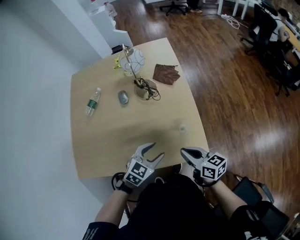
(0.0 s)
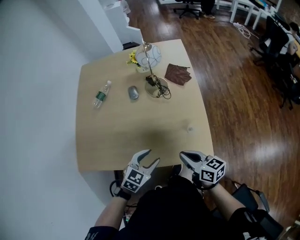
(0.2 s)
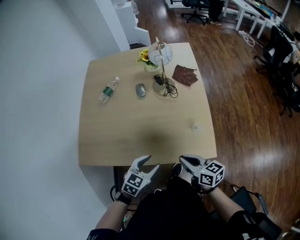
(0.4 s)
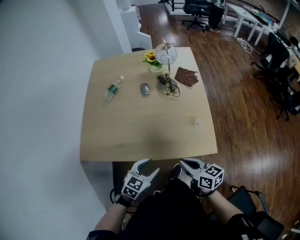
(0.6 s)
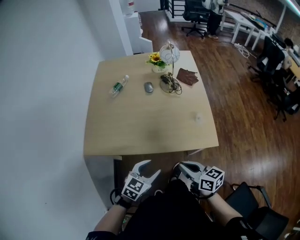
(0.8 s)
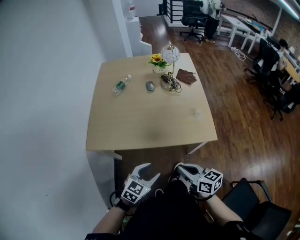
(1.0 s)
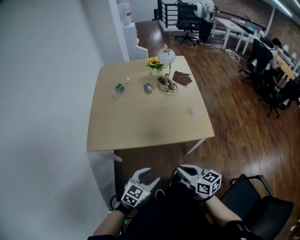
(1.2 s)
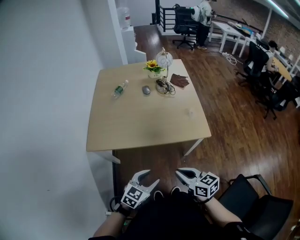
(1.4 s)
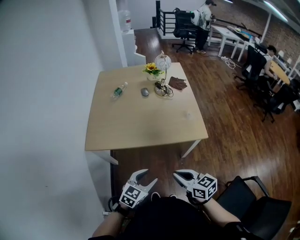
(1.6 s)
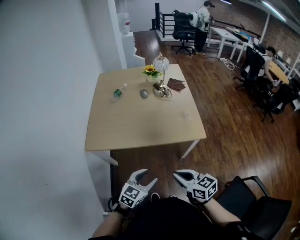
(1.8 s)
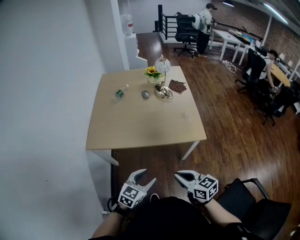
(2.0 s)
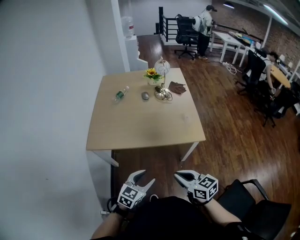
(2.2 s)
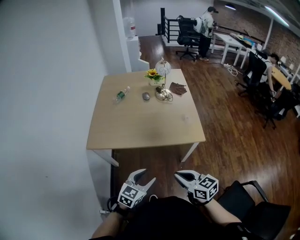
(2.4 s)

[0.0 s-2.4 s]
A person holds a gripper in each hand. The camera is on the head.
0.0 to 1.2 s: Both grippers travel together backward and to the left, roughly 35 cm.
1.2 to 2.4 s: Both grippers move backward, approximately 5 cm.

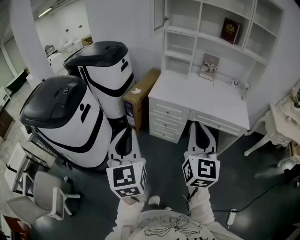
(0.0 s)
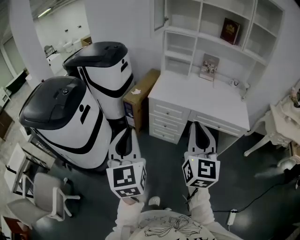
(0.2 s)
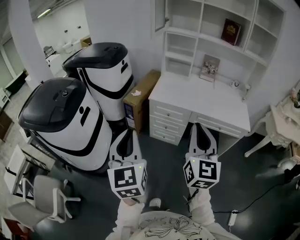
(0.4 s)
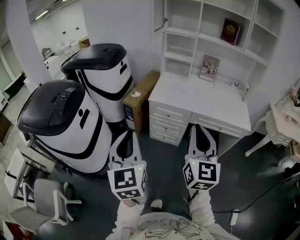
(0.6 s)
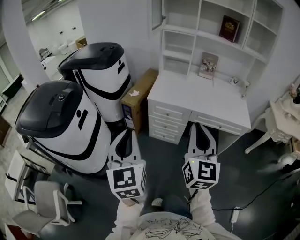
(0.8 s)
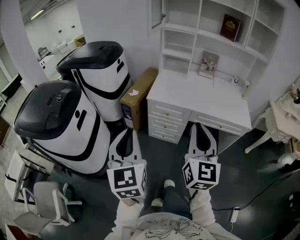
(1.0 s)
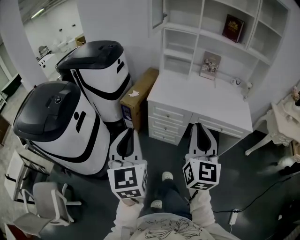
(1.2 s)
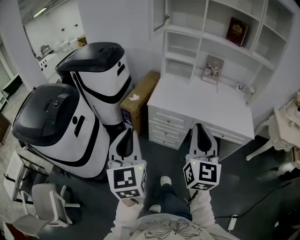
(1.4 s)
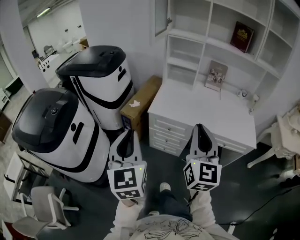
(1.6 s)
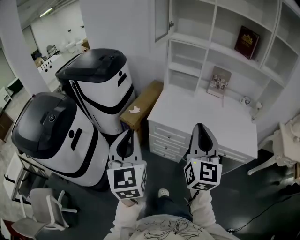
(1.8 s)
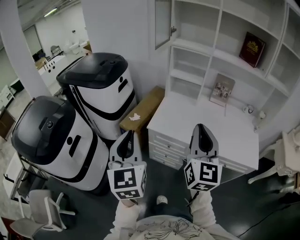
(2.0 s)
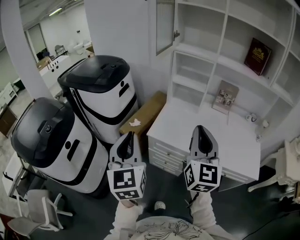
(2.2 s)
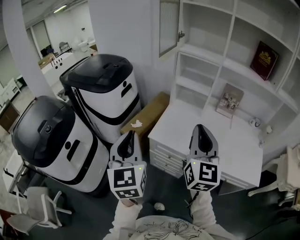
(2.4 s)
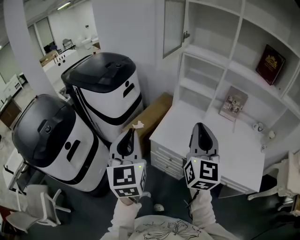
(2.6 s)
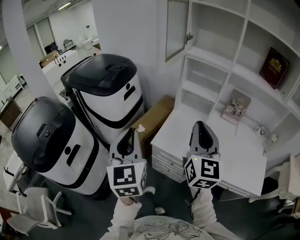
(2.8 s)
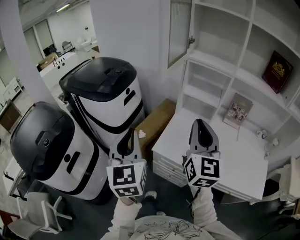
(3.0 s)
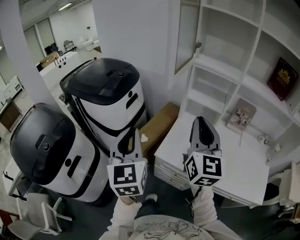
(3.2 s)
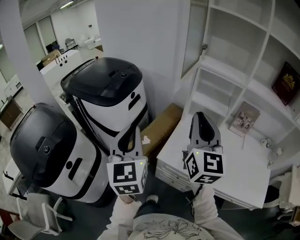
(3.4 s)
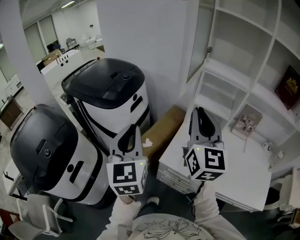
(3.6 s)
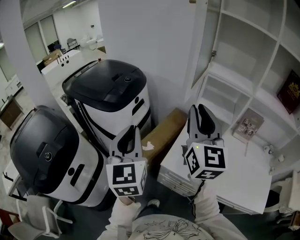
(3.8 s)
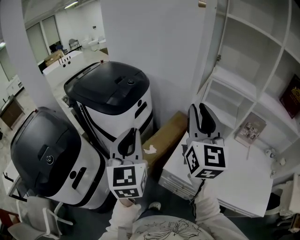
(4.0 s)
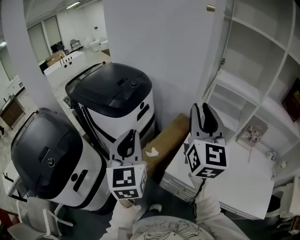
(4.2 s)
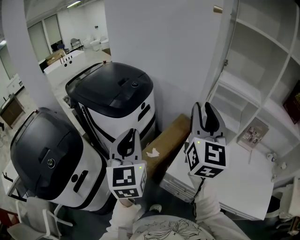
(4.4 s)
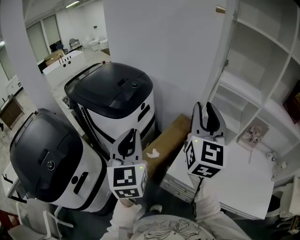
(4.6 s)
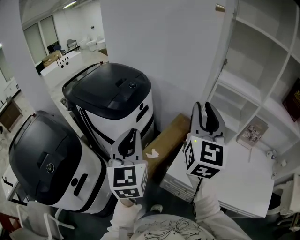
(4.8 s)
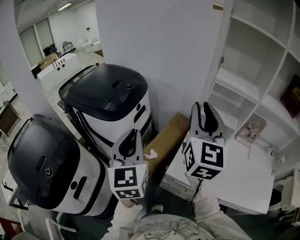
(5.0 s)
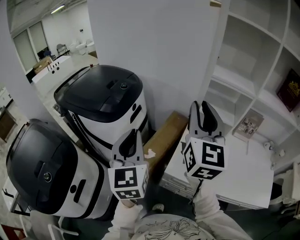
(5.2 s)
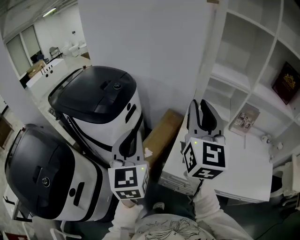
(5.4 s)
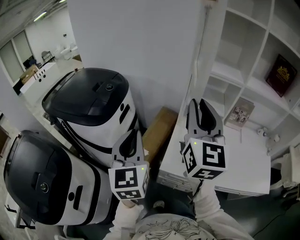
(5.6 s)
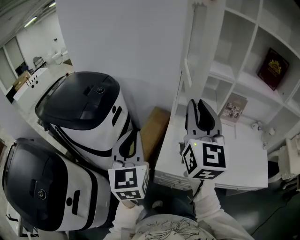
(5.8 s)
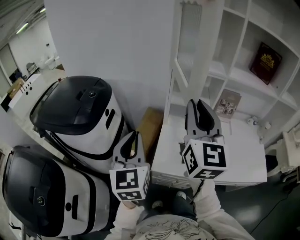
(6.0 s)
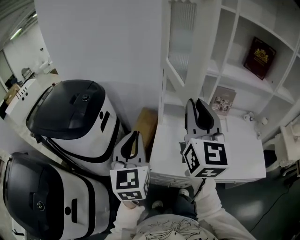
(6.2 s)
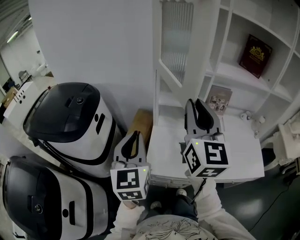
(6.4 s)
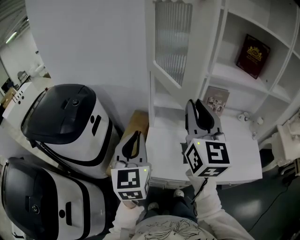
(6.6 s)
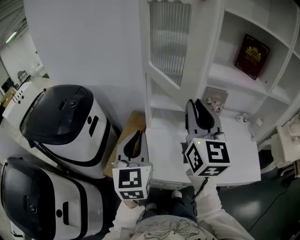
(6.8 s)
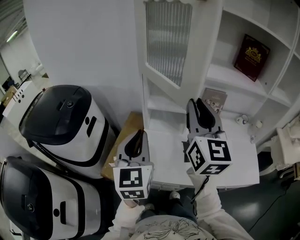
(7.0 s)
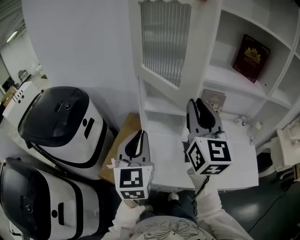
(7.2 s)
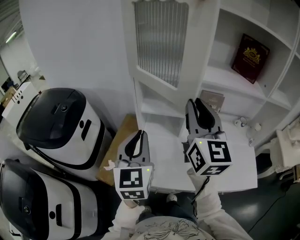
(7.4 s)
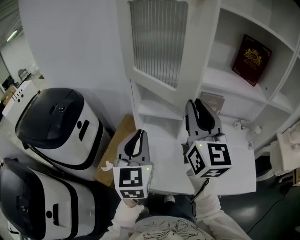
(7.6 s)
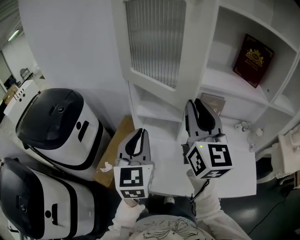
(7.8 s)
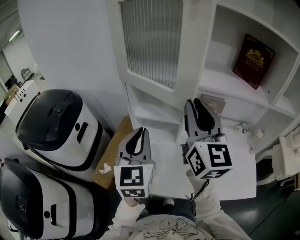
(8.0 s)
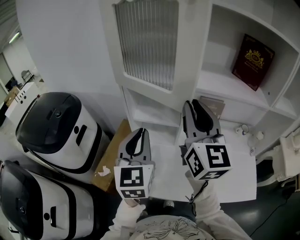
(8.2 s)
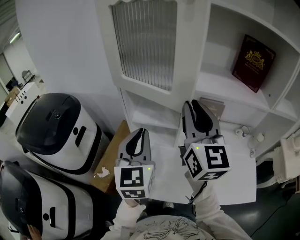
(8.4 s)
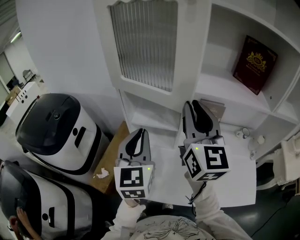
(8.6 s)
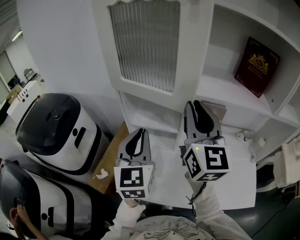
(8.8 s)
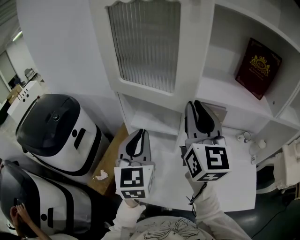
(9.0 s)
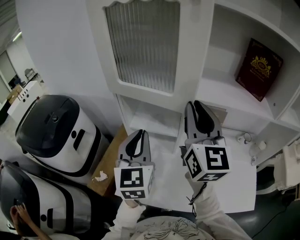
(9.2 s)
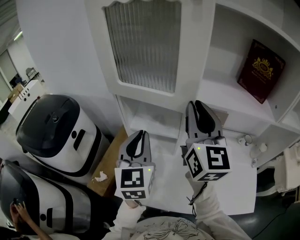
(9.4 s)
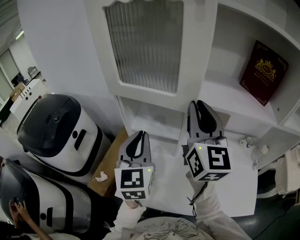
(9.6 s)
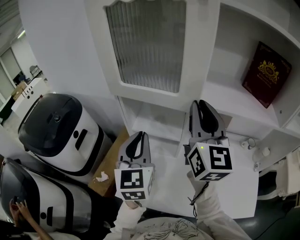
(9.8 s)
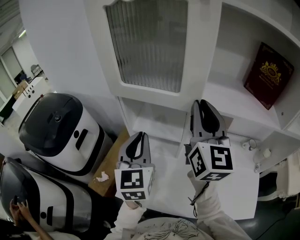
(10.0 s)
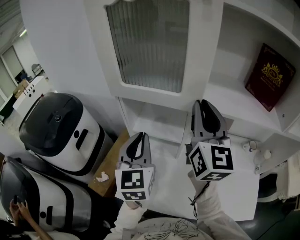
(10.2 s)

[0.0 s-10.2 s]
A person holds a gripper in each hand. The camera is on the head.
0.0 to 1.4 s: The grippers both shift forward by about 15 cm.
1.4 to 3.0 s: The grippers both shift forward by about 35 cm.
3.0 to 4.4 s: The left gripper heads forward and to the left, covering roughly 15 cm; the right gripper goes some 20 cm forward, to the left and upward, and opens its fingers.
4.4 to 5.8 s: Both grippers move to the right, about 10 cm.
5.8 to 7.2 s: The two grippers go about 20 cm to the right.
7.2 to 8.8 s: The two grippers go some 15 cm forward and to the right.
8.8 to 10.2 s: The left gripper changes place by approximately 5 cm. Meanwhile the right gripper goes some 5 cm forward.

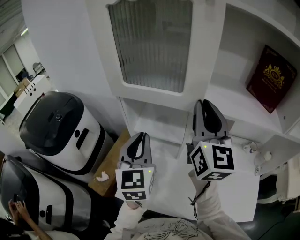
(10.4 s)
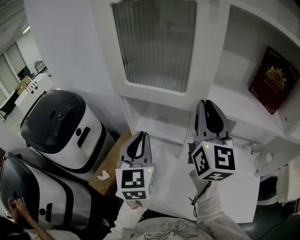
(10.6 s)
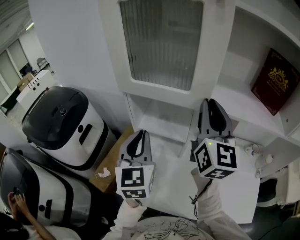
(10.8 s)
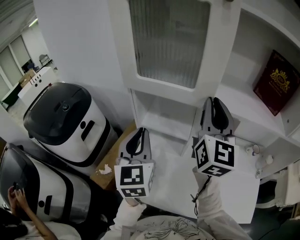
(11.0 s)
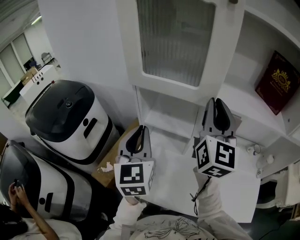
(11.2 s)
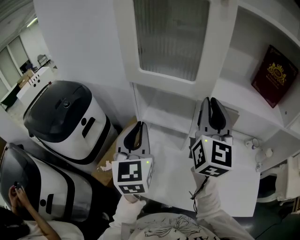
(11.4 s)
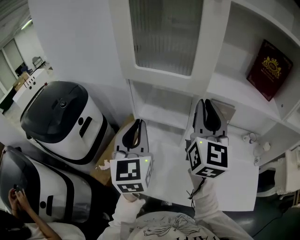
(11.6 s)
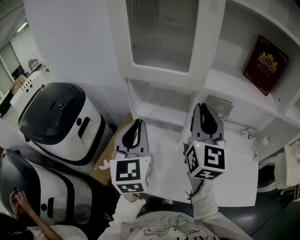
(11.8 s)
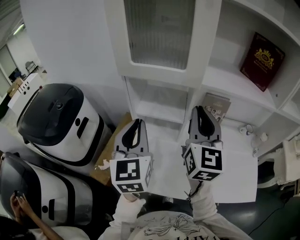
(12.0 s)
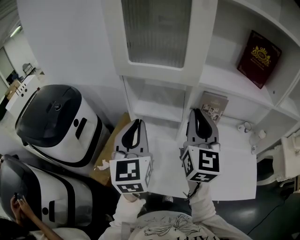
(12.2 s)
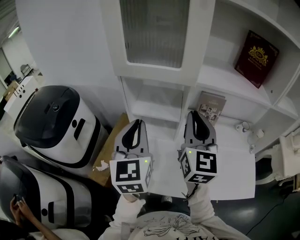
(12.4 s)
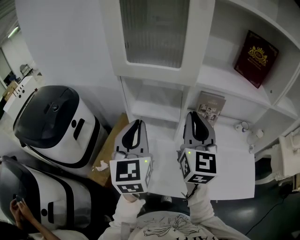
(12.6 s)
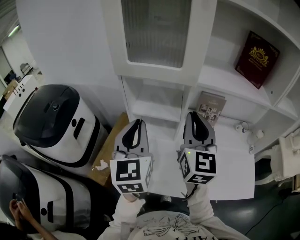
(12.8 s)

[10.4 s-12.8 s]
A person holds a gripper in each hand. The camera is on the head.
10.4 to 11.6 s: The left gripper changes place by roughly 5 cm. The right gripper is displaced backward by roughly 5 cm.
11.6 to 12.8 s: The right gripper moves approximately 5 cm.

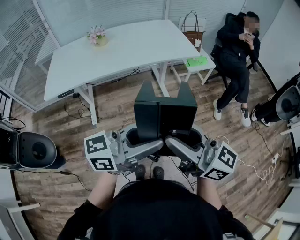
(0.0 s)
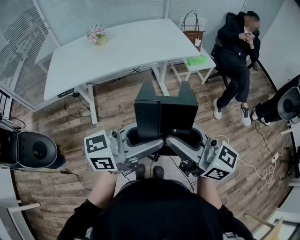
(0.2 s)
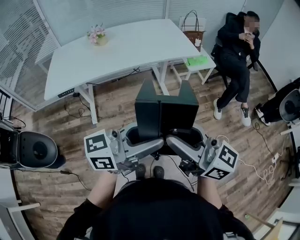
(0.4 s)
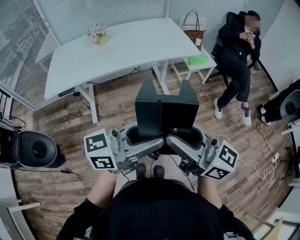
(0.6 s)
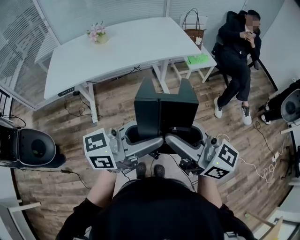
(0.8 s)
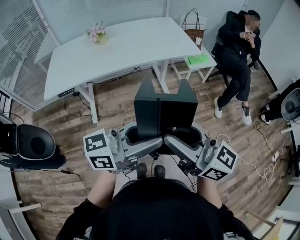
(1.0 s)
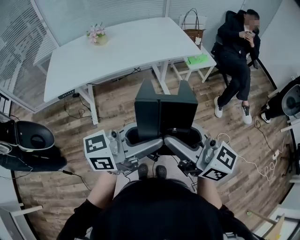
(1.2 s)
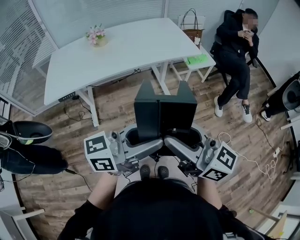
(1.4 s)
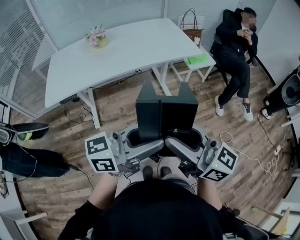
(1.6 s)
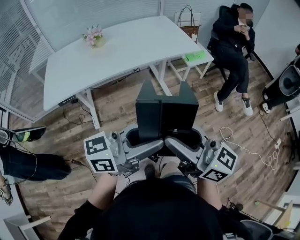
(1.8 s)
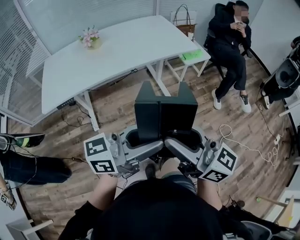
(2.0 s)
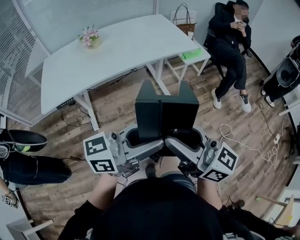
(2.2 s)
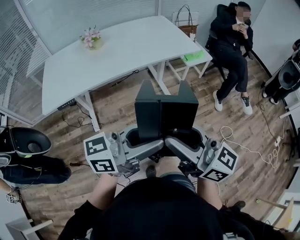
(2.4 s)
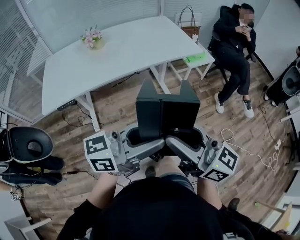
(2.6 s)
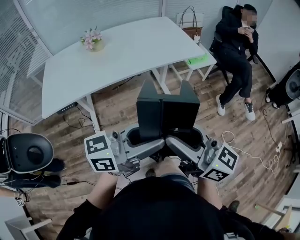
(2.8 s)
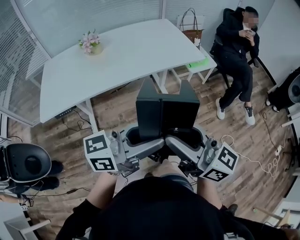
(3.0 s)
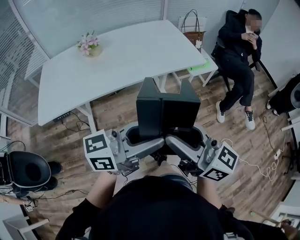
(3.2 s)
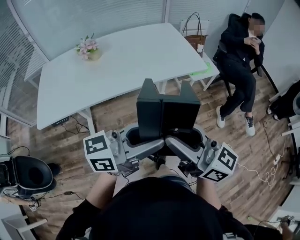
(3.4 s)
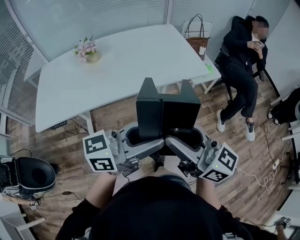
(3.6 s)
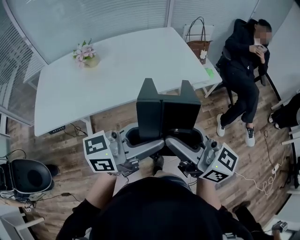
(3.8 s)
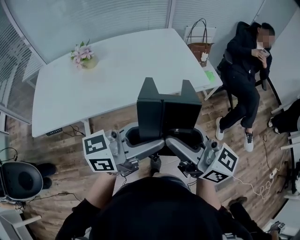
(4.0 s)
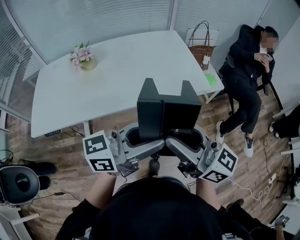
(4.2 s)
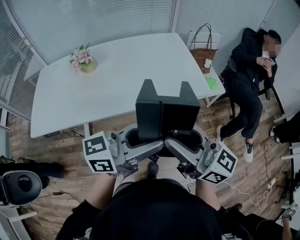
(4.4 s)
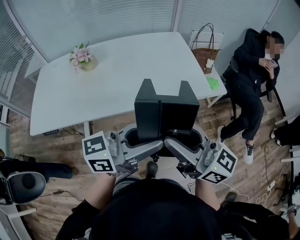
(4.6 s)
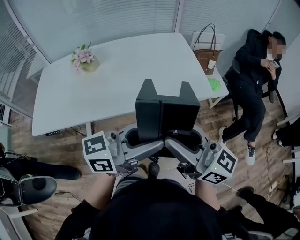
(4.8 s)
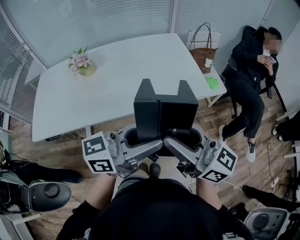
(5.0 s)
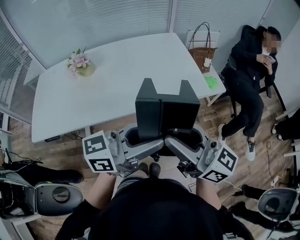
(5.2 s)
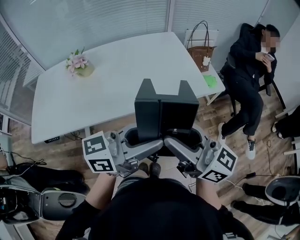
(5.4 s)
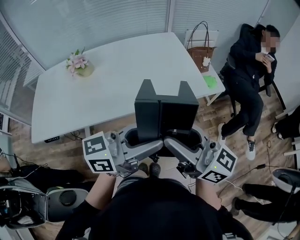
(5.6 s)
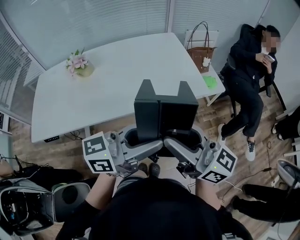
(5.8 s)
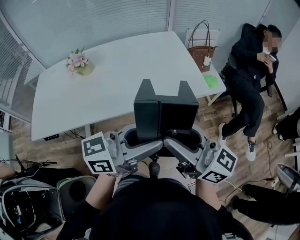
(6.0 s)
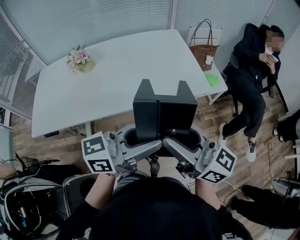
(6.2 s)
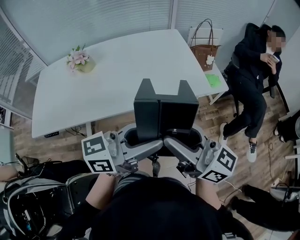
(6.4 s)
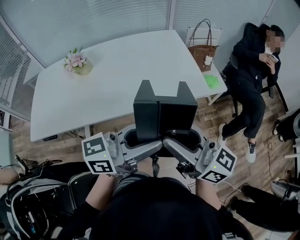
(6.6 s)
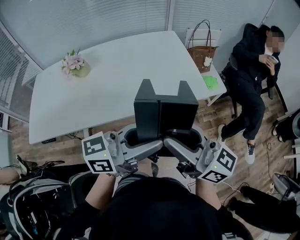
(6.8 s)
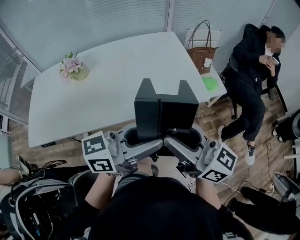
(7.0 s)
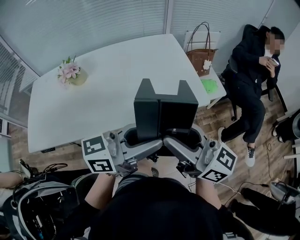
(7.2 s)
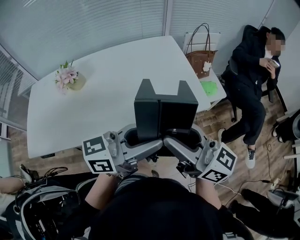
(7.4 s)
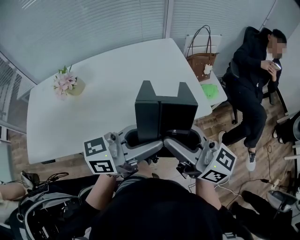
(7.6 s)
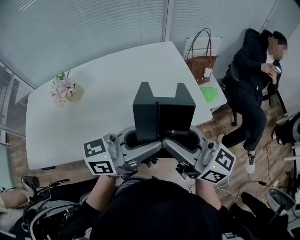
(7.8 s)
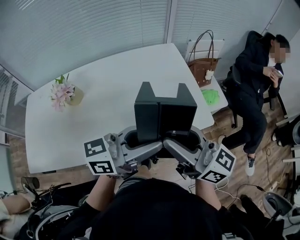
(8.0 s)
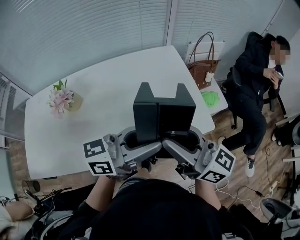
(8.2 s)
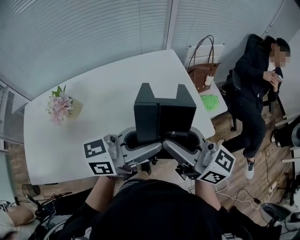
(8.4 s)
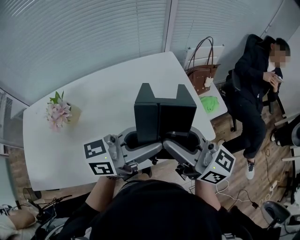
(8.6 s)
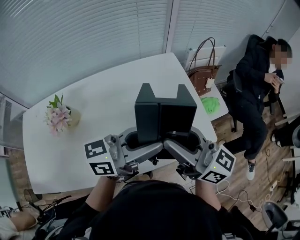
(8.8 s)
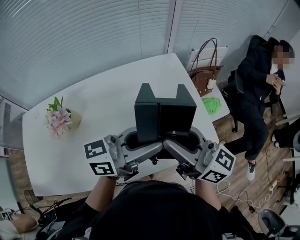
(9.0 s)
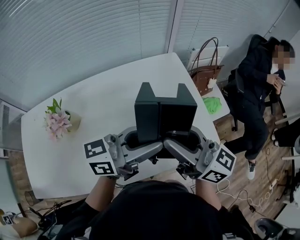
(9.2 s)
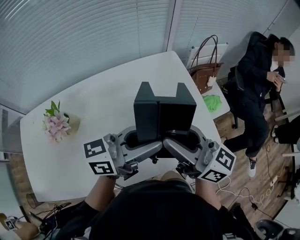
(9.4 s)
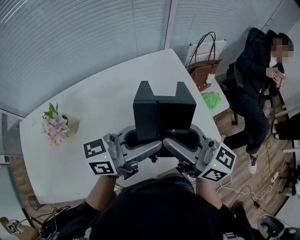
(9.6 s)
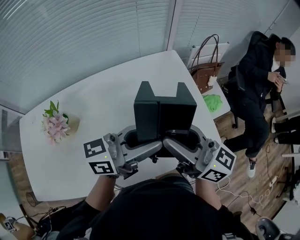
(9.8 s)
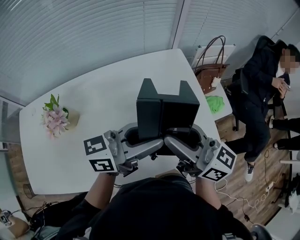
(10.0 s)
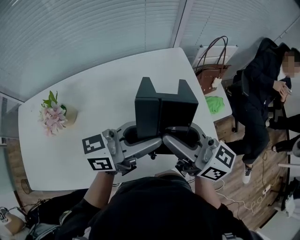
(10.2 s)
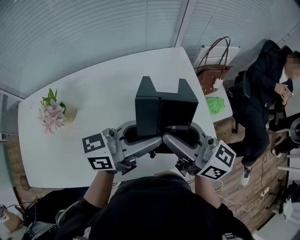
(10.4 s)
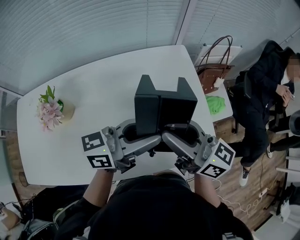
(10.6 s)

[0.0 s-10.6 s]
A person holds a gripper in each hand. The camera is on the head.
0.0 to 1.6 s: The grippers both shift to the left by roughly 5 cm.
1.6 to 3.0 s: The grippers both shift forward by roughly 10 cm.
3.0 to 4.6 s: The two grippers go some 25 cm forward.
4.6 to 6.0 s: The grippers stay close to where they were, moving slightly.
6.0 to 7.6 s: The two grippers go some 15 cm forward.
7.6 to 9.0 s: Both grippers travel together forward, approximately 15 cm.
9.0 to 10.6 s: The two grippers go roughly 5 cm forward.
